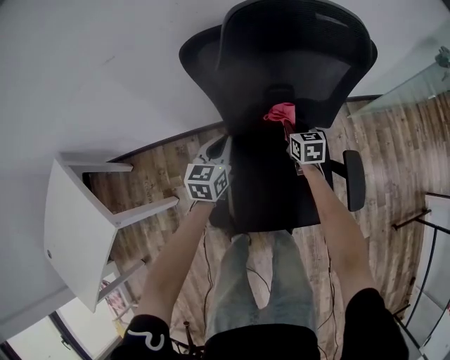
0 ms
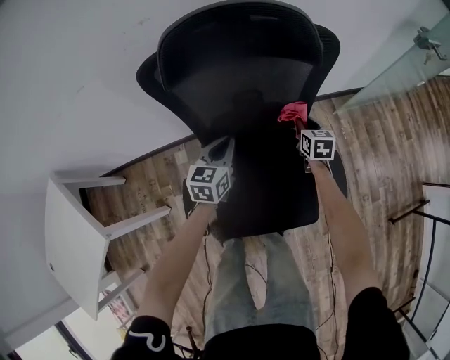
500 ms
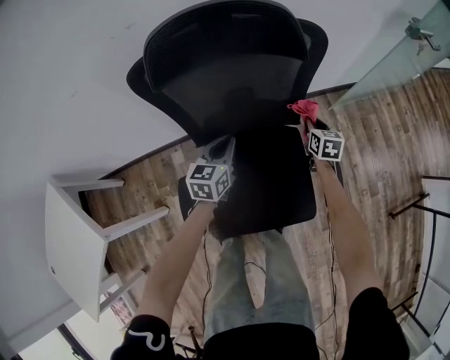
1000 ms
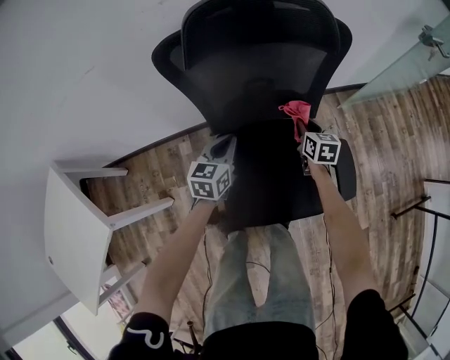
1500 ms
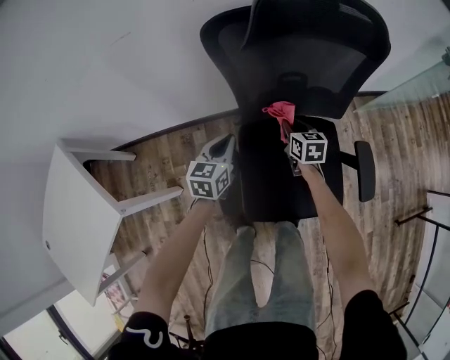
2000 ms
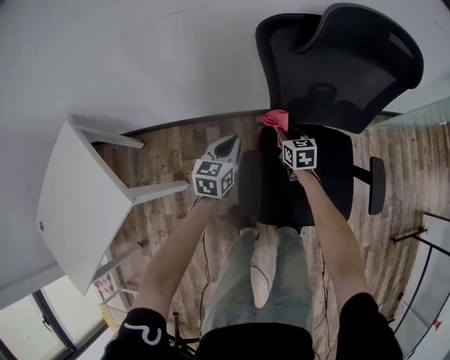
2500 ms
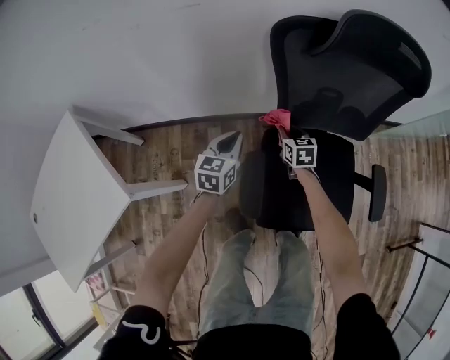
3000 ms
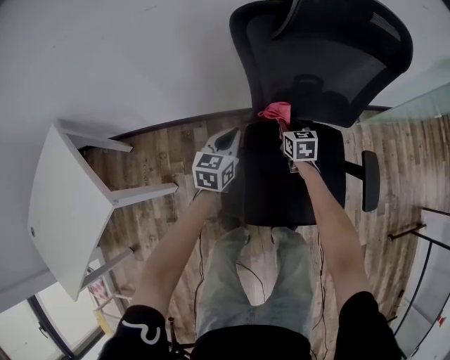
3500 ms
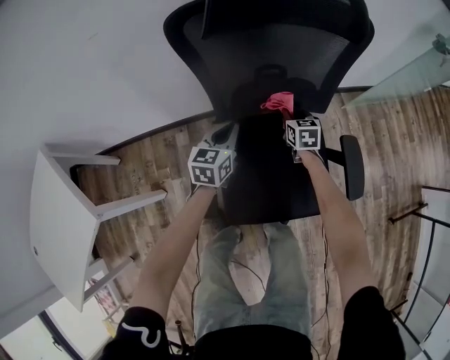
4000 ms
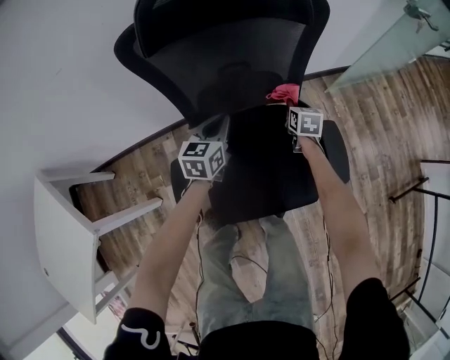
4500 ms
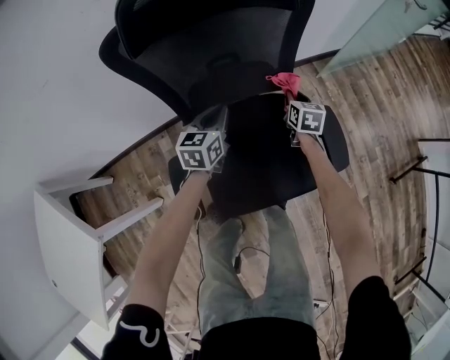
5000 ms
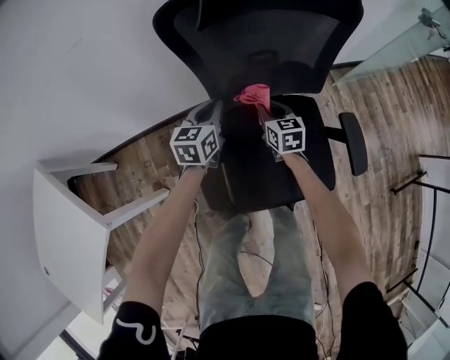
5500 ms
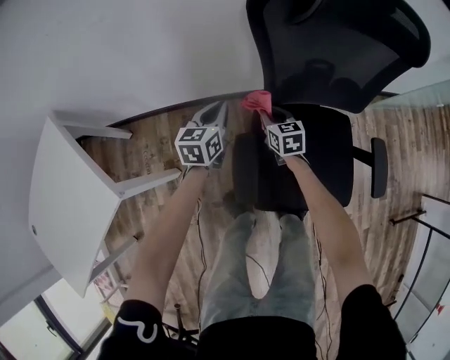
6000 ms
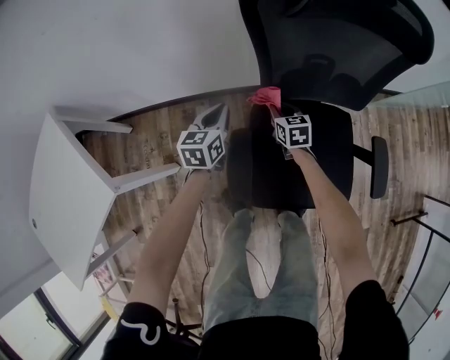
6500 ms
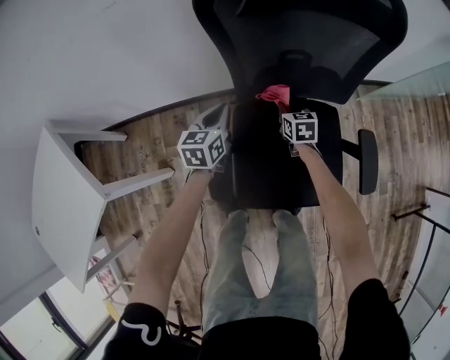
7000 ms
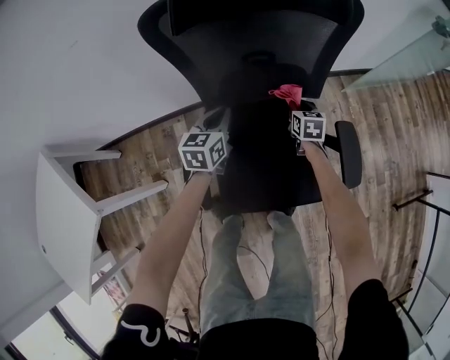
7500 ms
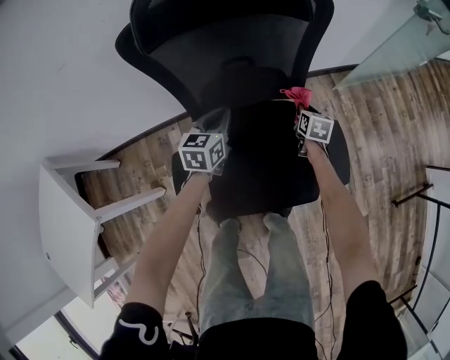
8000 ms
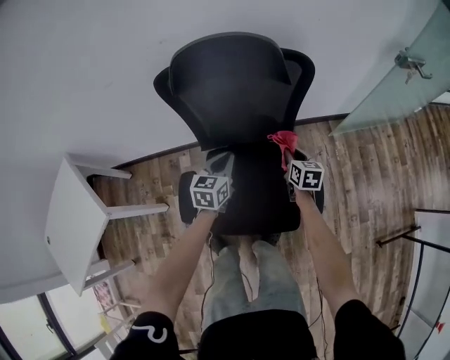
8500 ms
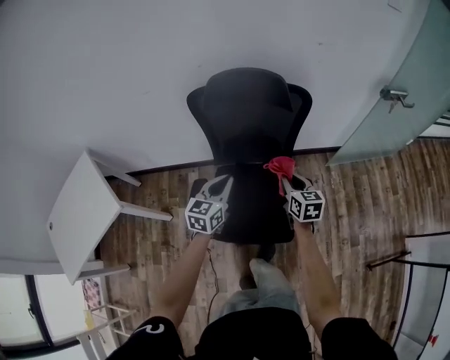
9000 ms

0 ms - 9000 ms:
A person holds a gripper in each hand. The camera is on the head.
0 ms - 2000 ms: The left gripper moves about 15 cm to the right and comes back; the right gripper reaches roughly 20 cm to the right, then returns.
2000 ms - 4500 ms: Both grippers travel together to the right, some 20 cm.
4500 ms - 7000 ms: The right gripper changes its angle by some 20 degrees.
7000 ms - 9000 ms: Both grippers move upward, to the right and backward, roughly 35 cm.

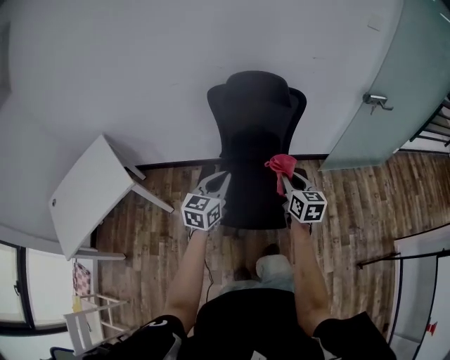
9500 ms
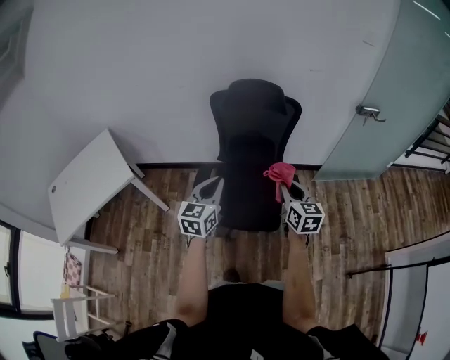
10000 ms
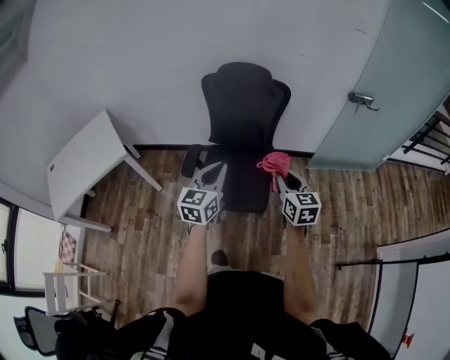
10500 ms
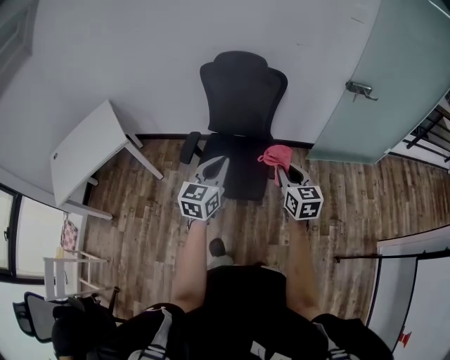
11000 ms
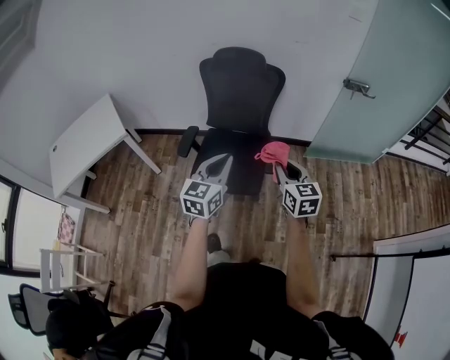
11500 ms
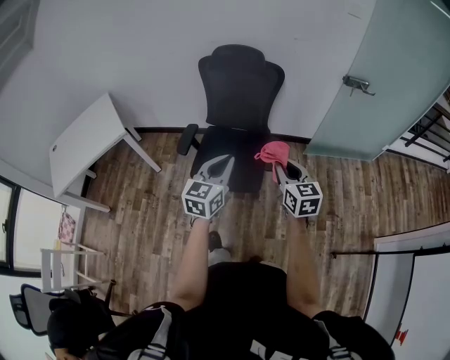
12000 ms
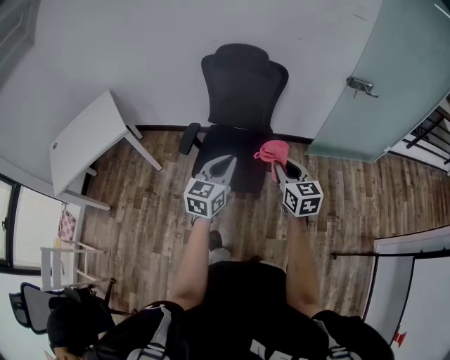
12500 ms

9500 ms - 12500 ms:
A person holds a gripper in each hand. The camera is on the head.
9500 ms - 11000 ms: Both grippers move backward and to the right, some 20 cm.
11000 ms - 12500 ms: The grippers move only a little.

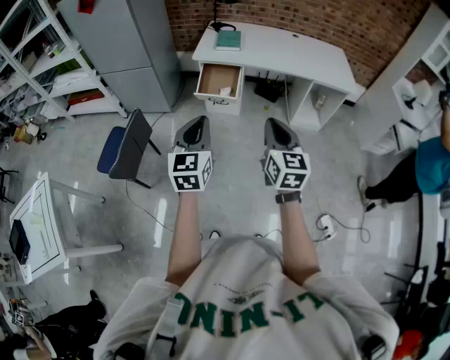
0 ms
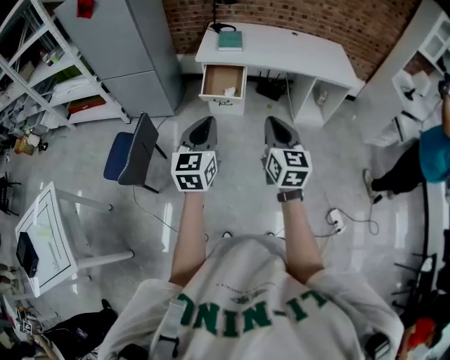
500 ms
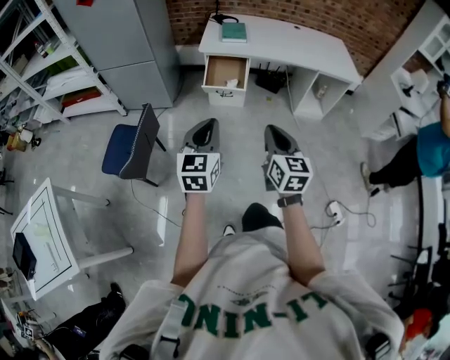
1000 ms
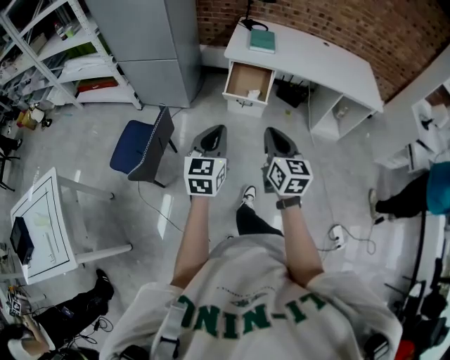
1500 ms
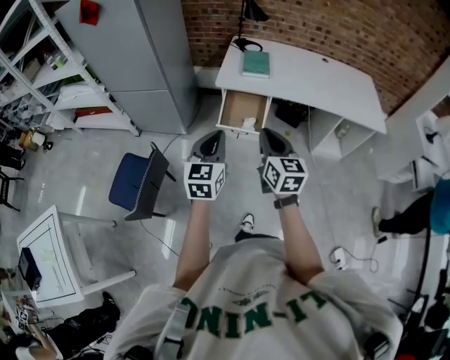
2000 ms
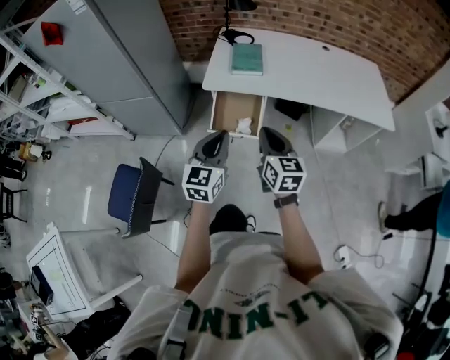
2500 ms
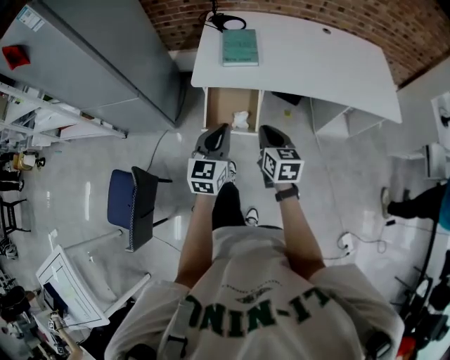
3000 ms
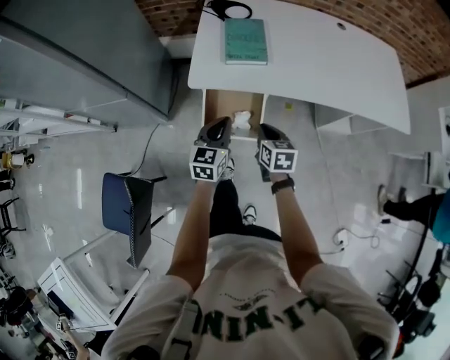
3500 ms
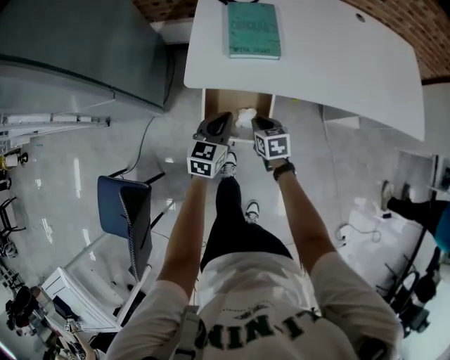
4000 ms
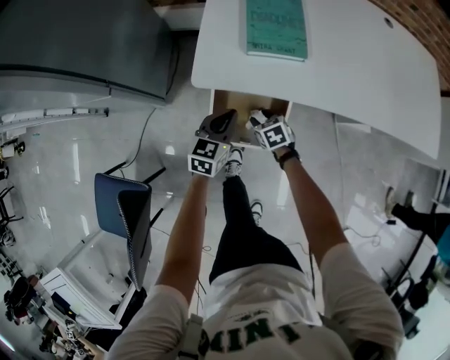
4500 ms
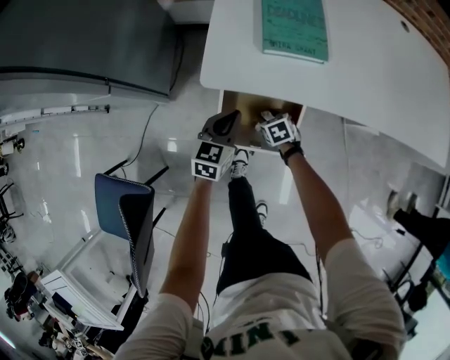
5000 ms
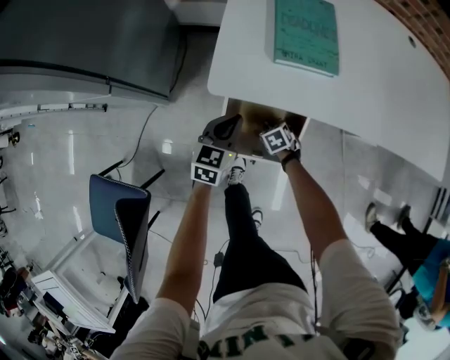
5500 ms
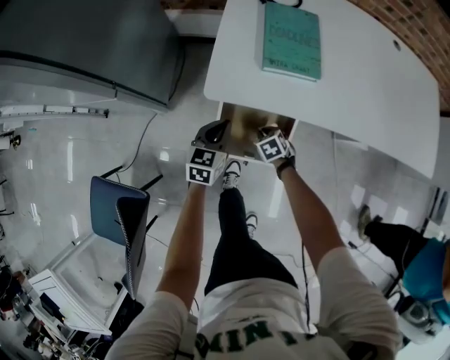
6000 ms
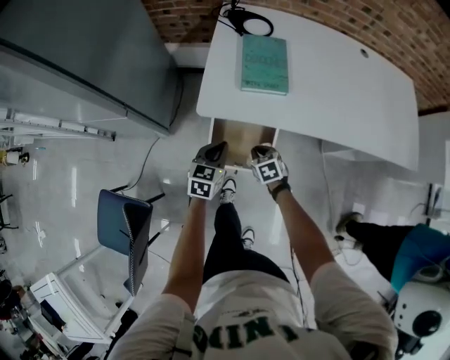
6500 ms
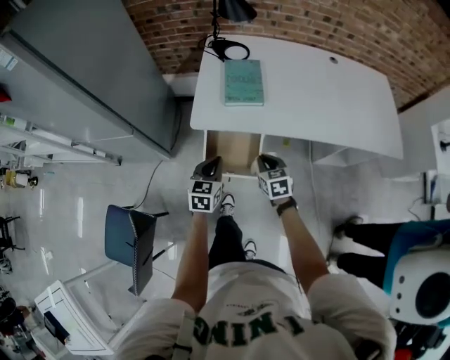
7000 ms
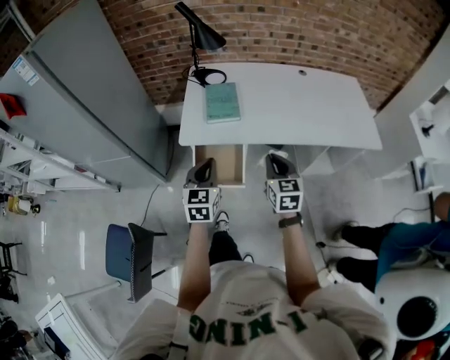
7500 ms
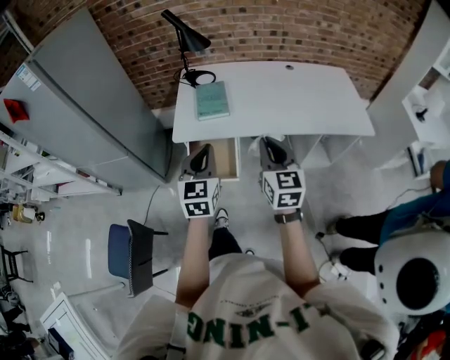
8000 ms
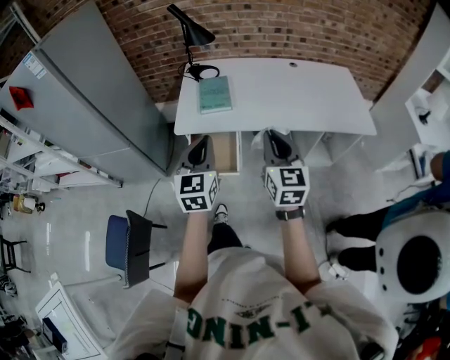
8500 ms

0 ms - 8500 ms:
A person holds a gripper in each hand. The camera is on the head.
0 ms - 2000 ms: The right gripper goes about 30 cm forward and to the left, while the left gripper goes approximately 25 cm forward.
2000 ms - 4000 ms: The right gripper shifts some 60 cm downward and forward, and tilts its fingers some 40 degrees downward. The left gripper heads forward and downward, covering about 50 cm, and rotates approximately 20 degrees.
4000 ms - 6500 ms: The right gripper goes downward and returns, about 25 cm each way, and opens and closes again, while the left gripper moves approximately 10 cm downward and comes back.
6500 ms - 8500 ms: The left gripper moves upward and backward, about 40 cm, and changes its angle by some 30 degrees. The right gripper shifts roughly 50 cm upward and to the right, and angles its fingers upward, by some 50 degrees.

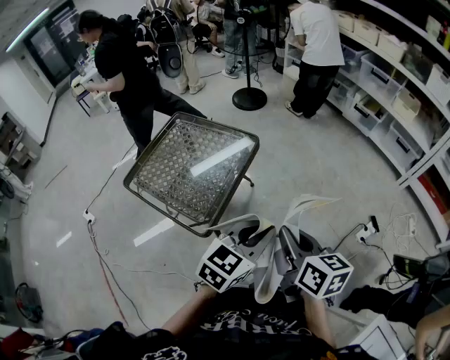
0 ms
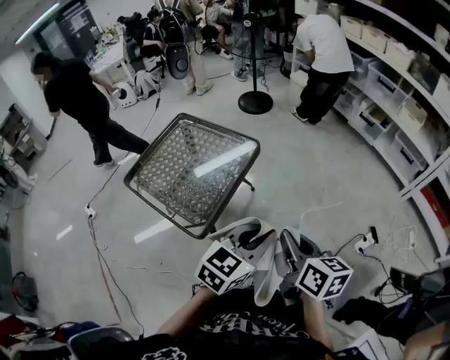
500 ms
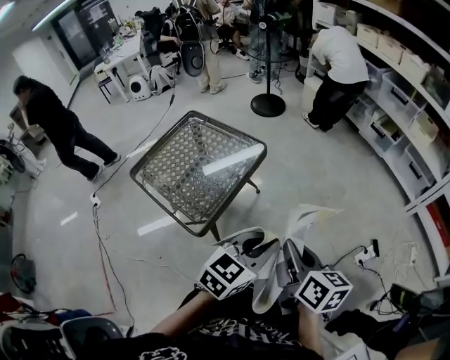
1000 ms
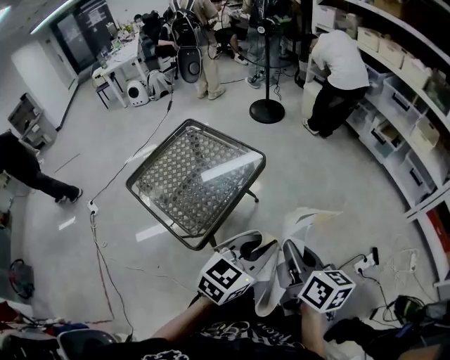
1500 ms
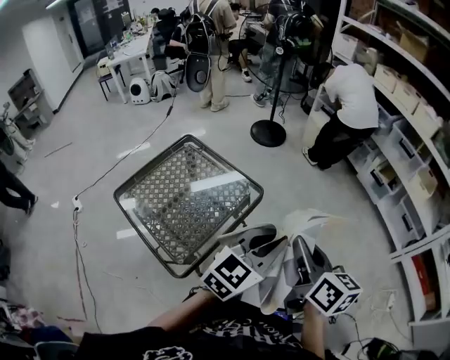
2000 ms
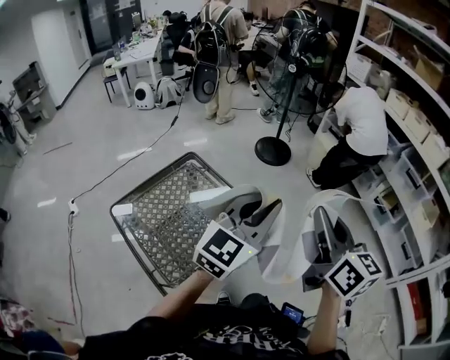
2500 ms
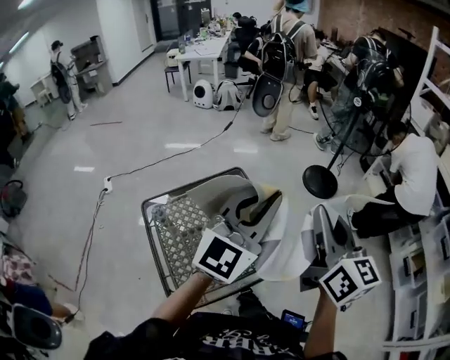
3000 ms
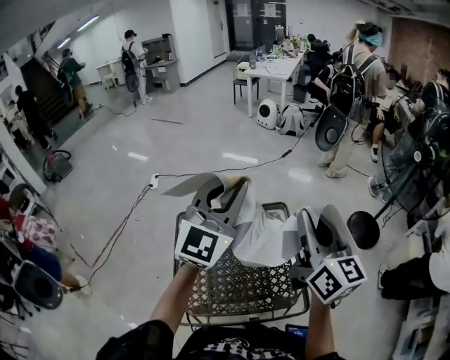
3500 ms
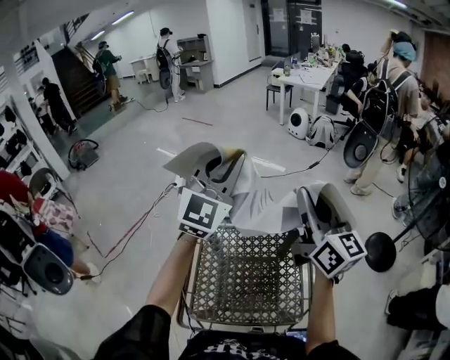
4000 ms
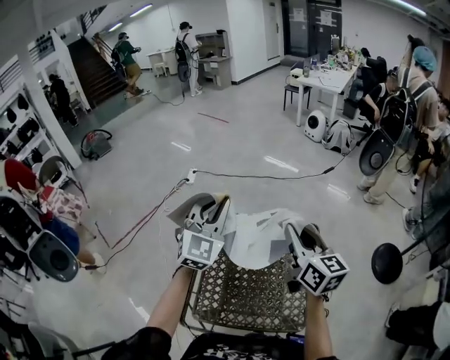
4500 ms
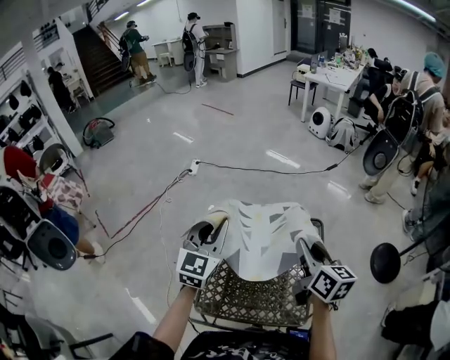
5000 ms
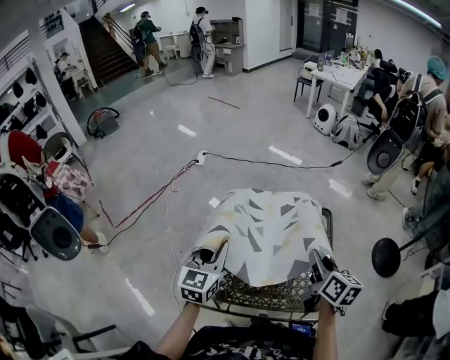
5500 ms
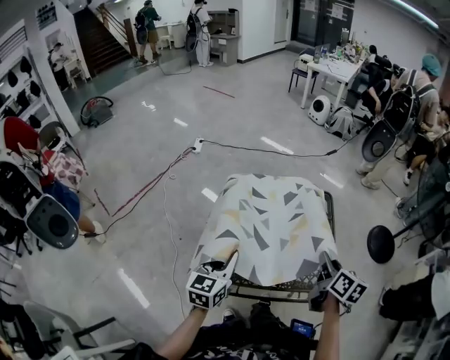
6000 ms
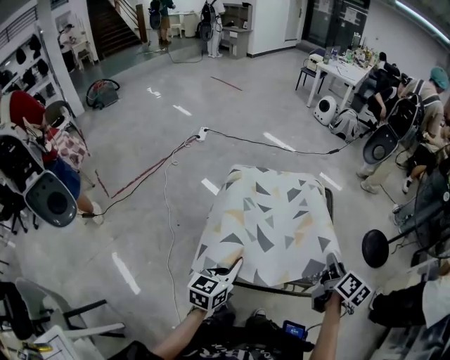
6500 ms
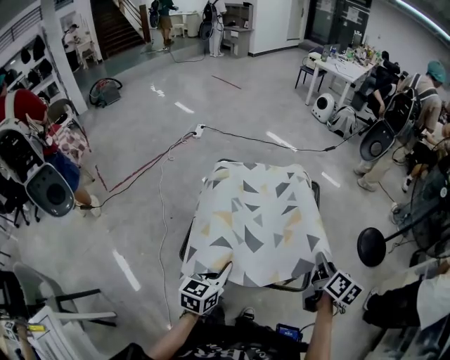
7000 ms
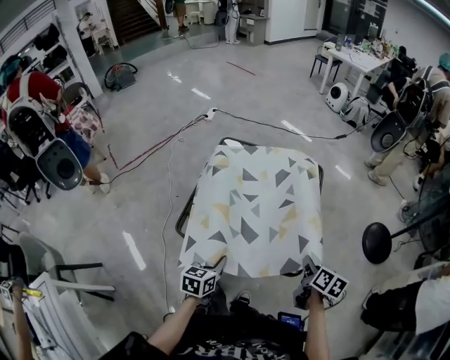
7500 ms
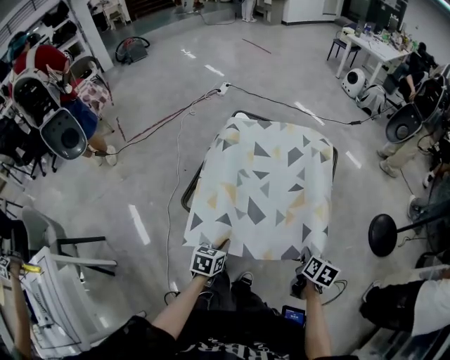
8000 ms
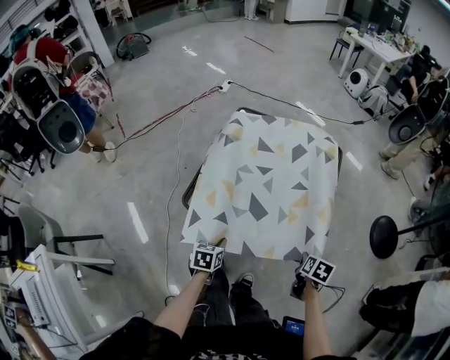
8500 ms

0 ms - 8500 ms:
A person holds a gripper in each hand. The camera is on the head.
0 ms - 2000 ms: Both grippers move forward, some 25 cm.
2000 ms - 4000 ms: The pair of grippers is taken about 60 cm. The left gripper rotates some 90 degrees, while the right gripper changes its angle by about 60 degrees.
4000 ms - 6500 ms: The right gripper heads downward and backward, covering approximately 35 cm, and tips its fingers downward by roughly 40 degrees; the left gripper goes roughly 50 cm downward, backward and to the left, and rolls counterclockwise, seen from behind, by roughly 60 degrees.
6500 ms - 8500 ms: The right gripper travels downward and to the right by about 30 cm, and tips its fingers downward by about 30 degrees; the left gripper moves downward, backward and to the right, some 30 cm, and tilts its fingers some 30 degrees downward.
